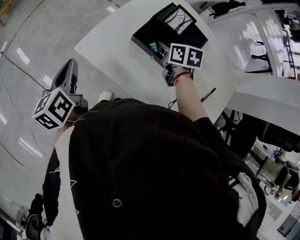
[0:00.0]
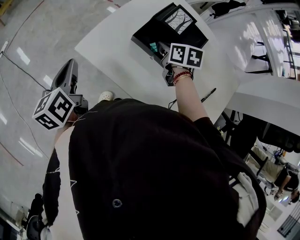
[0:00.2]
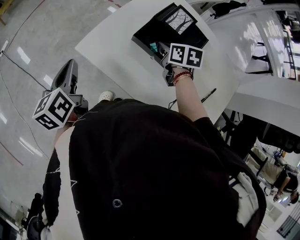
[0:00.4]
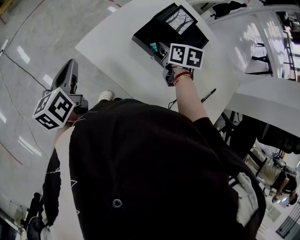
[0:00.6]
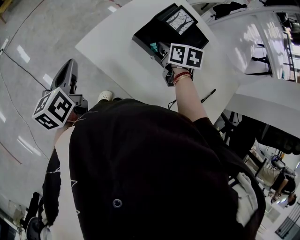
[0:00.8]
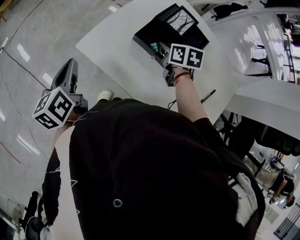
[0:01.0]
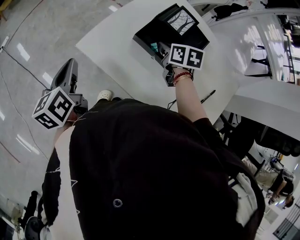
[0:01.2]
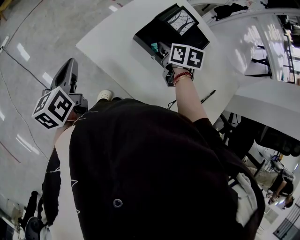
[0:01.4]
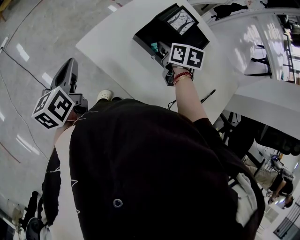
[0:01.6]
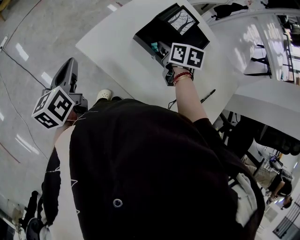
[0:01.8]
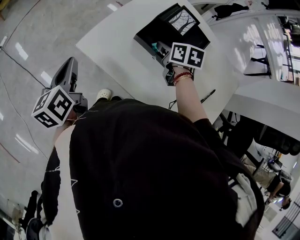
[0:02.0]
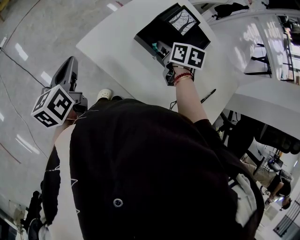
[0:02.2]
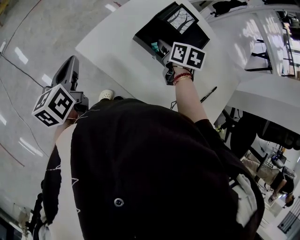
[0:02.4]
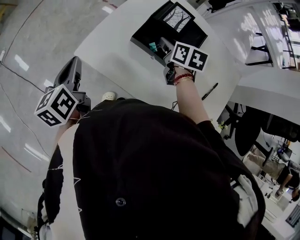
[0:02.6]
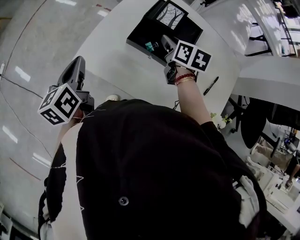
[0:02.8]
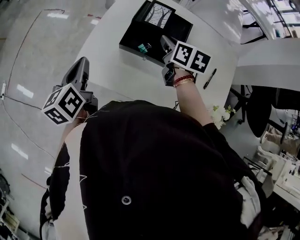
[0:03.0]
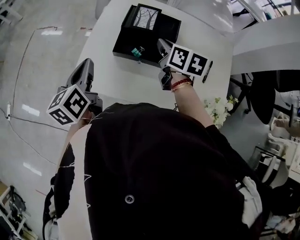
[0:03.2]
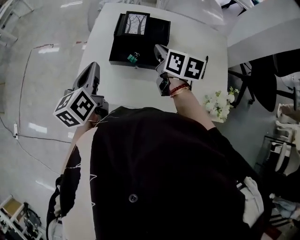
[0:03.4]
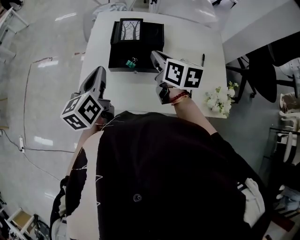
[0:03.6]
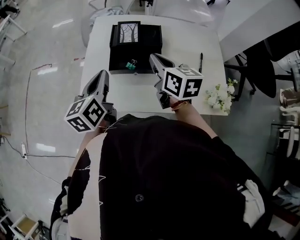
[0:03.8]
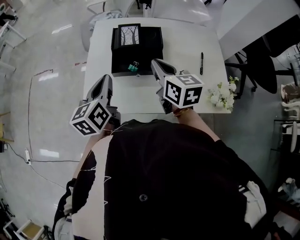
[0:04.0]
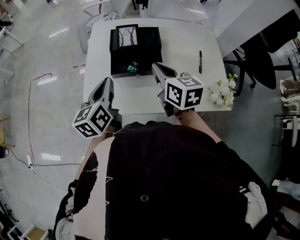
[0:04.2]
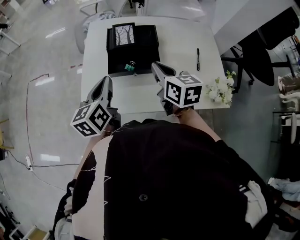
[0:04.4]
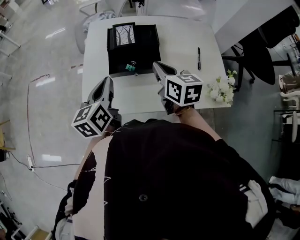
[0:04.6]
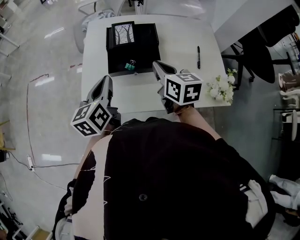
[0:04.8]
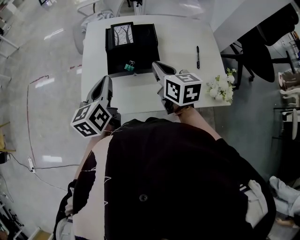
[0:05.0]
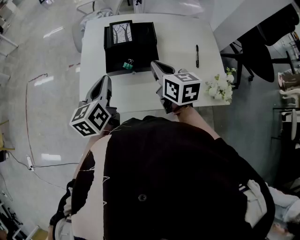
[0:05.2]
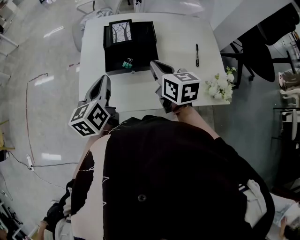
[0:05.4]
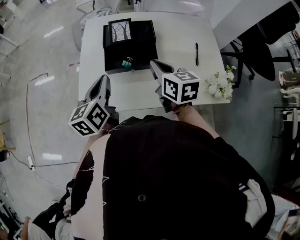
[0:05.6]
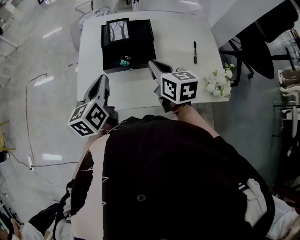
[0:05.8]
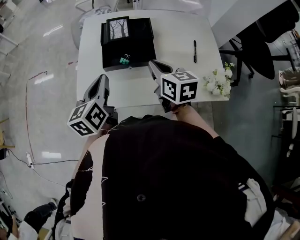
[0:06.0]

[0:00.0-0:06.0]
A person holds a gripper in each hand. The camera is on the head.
0:00.0 to 0:01.6: Both grippers stay put.
0:01.6 to 0:03.0: The right gripper moves upward and to the right, about 10 cm, turns by about 30 degrees, and opens, then closes again. The left gripper moves to the right and forward, about 10 cm, and swivels some 20 degrees.
0:03.0 to 0:04.4: The right gripper shifts approximately 10 cm backward and upward, and closes up. Meanwhile the left gripper shifts about 10 cm to the right, and swivels some 30 degrees.
0:04.4 to 0:06.0: The grippers stay close to where they were, moving slightly.

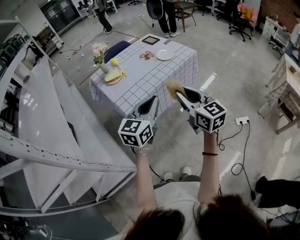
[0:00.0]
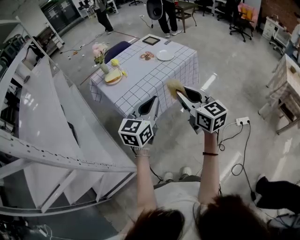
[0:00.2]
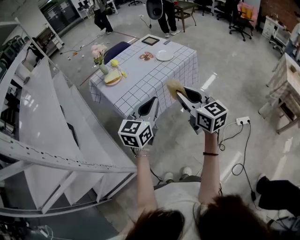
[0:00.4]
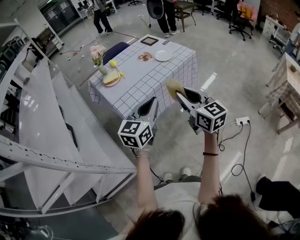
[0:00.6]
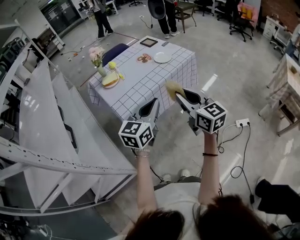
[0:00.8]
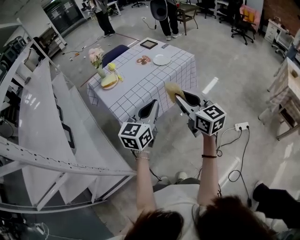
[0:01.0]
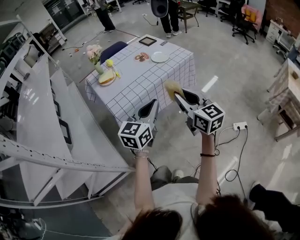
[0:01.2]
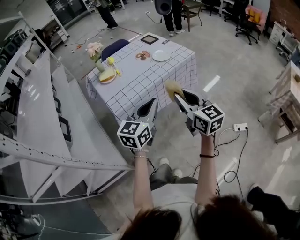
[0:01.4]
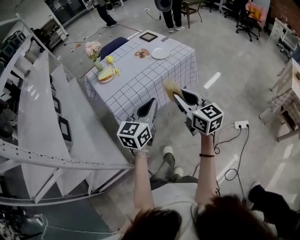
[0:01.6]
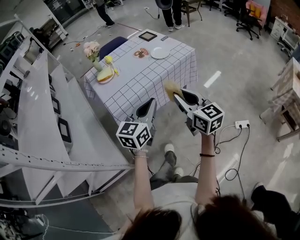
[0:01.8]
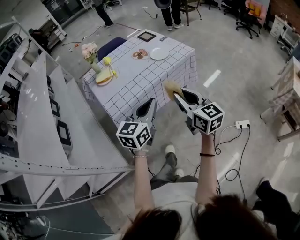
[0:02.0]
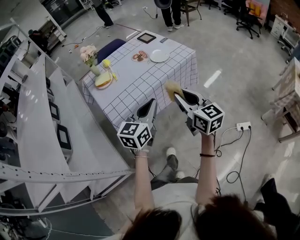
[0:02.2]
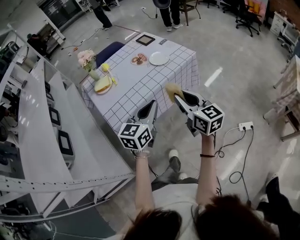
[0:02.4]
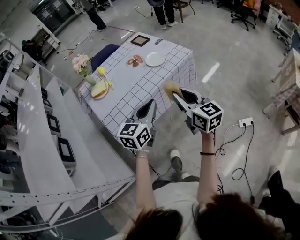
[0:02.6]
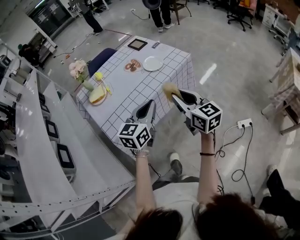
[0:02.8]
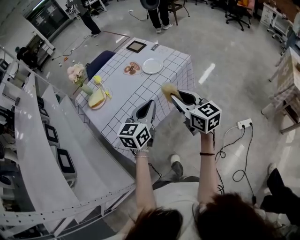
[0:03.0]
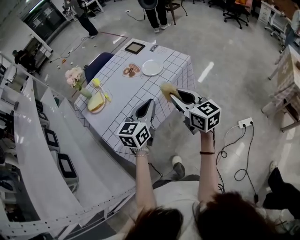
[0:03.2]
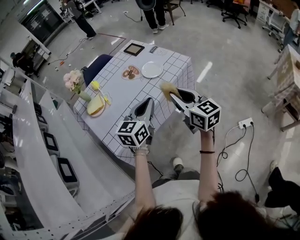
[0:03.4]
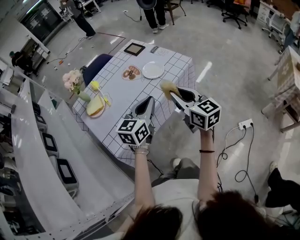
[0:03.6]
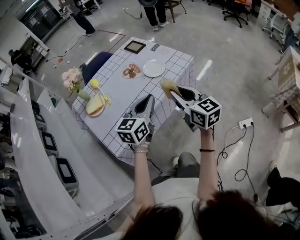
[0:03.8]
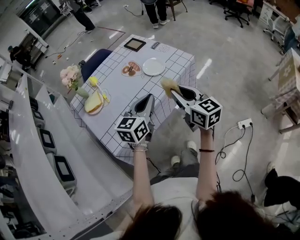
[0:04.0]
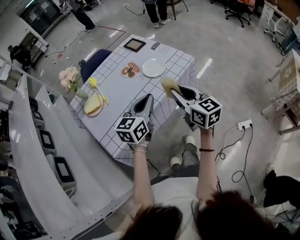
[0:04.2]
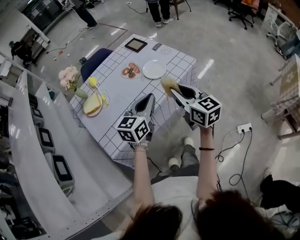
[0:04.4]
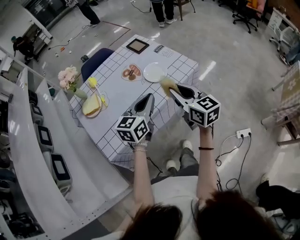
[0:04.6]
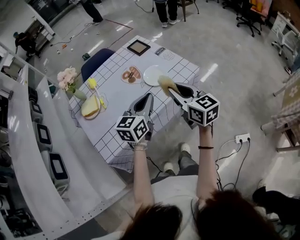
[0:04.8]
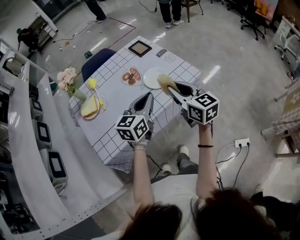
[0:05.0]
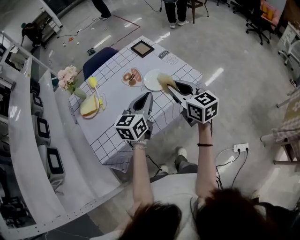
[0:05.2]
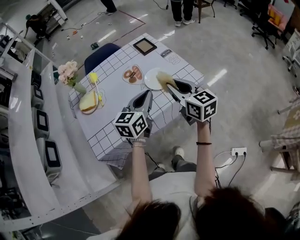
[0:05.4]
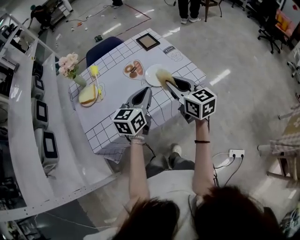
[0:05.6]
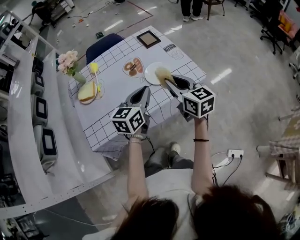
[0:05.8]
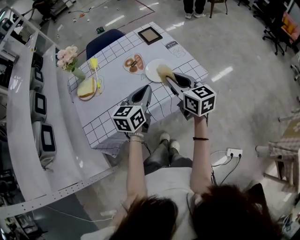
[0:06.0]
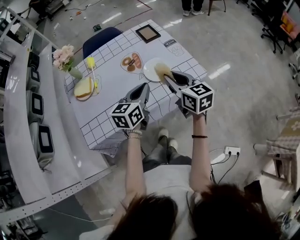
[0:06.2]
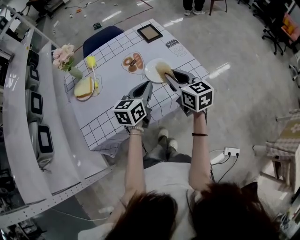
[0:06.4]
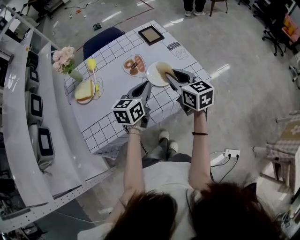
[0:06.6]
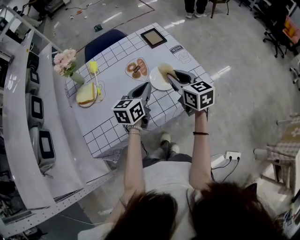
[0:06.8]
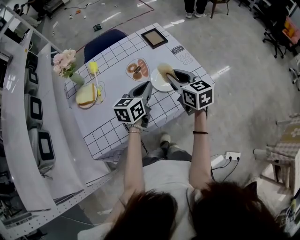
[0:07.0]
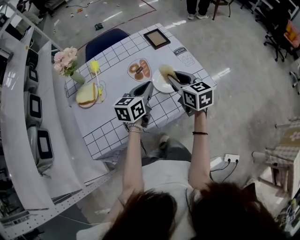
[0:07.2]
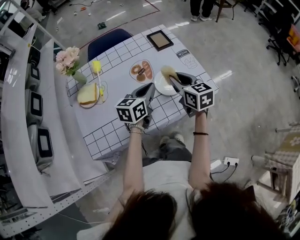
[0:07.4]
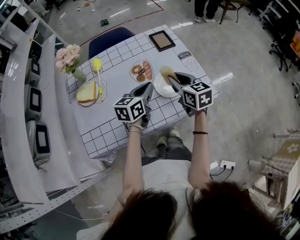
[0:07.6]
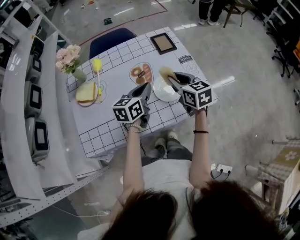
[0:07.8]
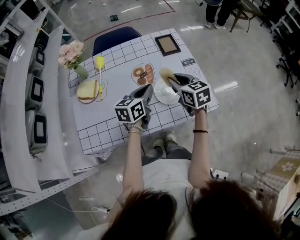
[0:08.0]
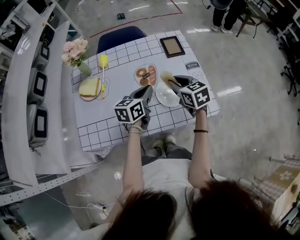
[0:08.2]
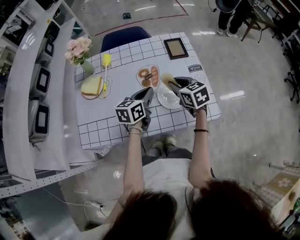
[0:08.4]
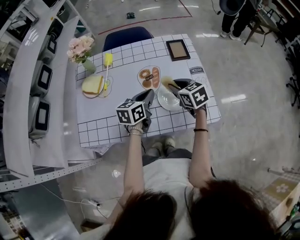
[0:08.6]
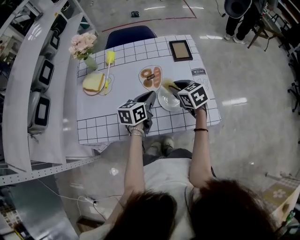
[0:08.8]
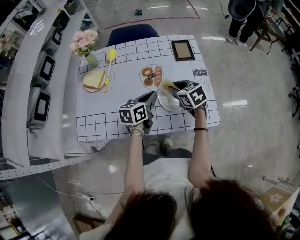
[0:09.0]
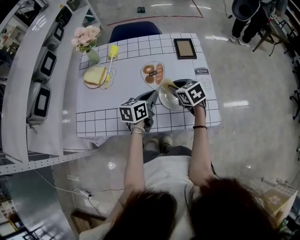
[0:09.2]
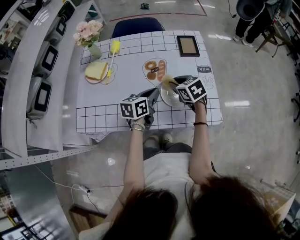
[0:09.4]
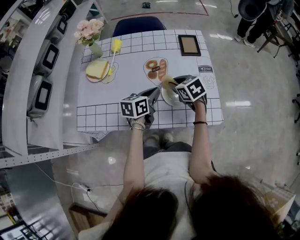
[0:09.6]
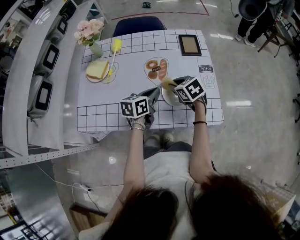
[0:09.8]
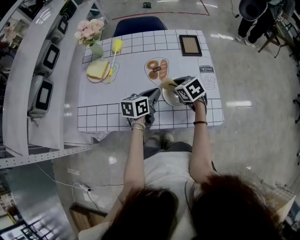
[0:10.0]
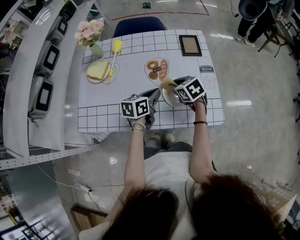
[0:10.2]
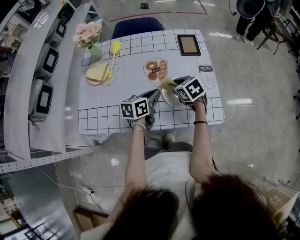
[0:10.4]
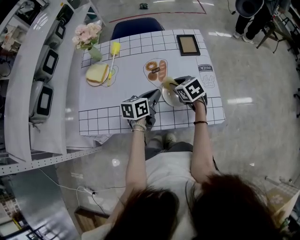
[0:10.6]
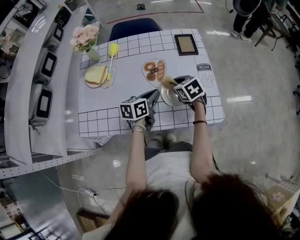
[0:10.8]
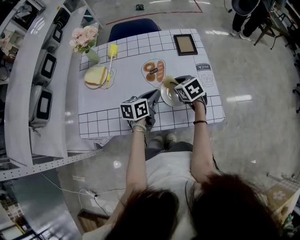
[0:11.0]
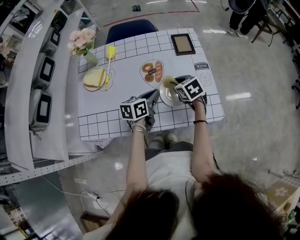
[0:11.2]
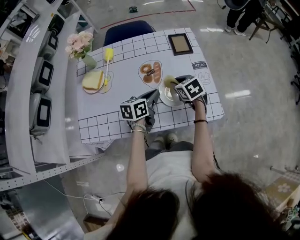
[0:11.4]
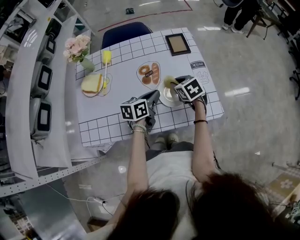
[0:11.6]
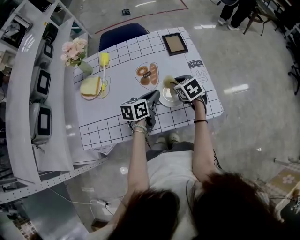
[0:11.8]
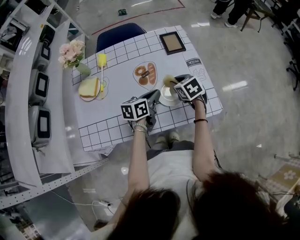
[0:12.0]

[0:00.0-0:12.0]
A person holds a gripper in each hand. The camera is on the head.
0:00.0 to 0:01.6: The grippers both shift to the right by about 10 cm.
0:01.6 to 0:03.0: Both grippers move forward, roughly 15 cm.
0:03.0 to 0:04.4: Both grippers move forward, some 10 cm.
0:04.4 to 0:06.0: Both grippers travel together forward, roughly 10 cm.
0:06.0 to 0:07.6: Both grippers move forward, roughly 15 cm.
0:07.6 to 0:09.0: The right gripper heads downward and forward, covering some 10 cm, and swivels roughly 30 degrees. The left gripper shifts approximately 5 cm downward.
0:09.0 to 0:10.4: The grippers make only small movements.
0:10.4 to 0:12.0: The right gripper heads to the right, covering some 5 cm.

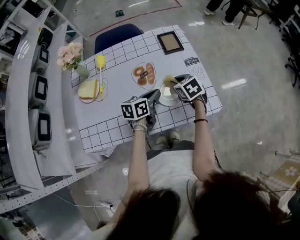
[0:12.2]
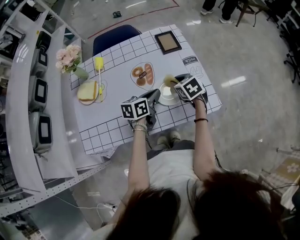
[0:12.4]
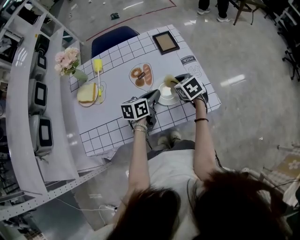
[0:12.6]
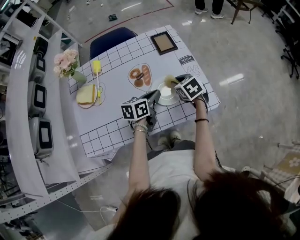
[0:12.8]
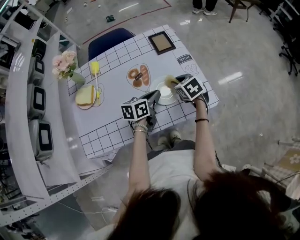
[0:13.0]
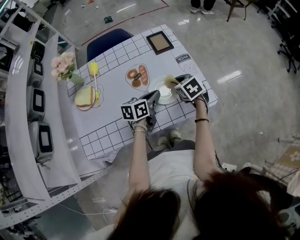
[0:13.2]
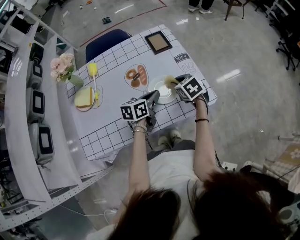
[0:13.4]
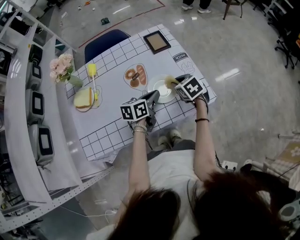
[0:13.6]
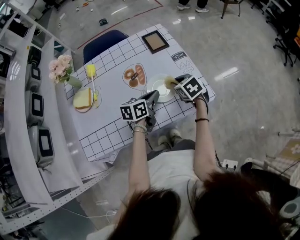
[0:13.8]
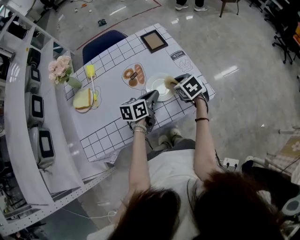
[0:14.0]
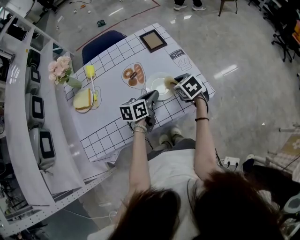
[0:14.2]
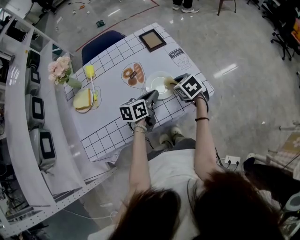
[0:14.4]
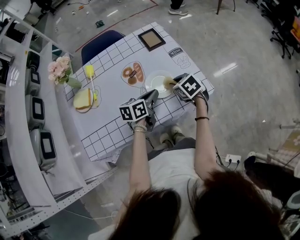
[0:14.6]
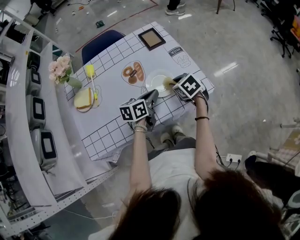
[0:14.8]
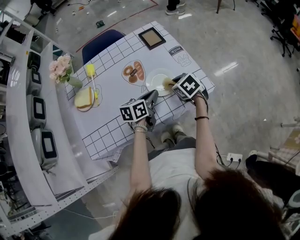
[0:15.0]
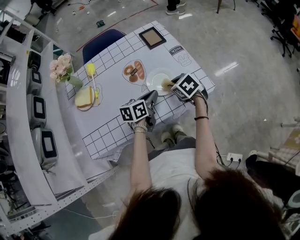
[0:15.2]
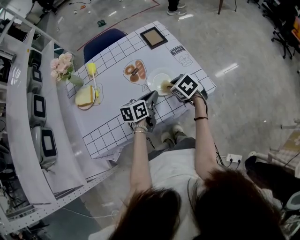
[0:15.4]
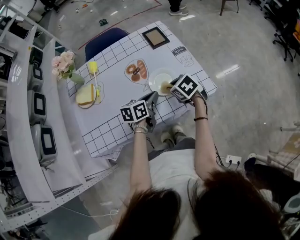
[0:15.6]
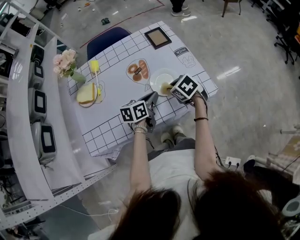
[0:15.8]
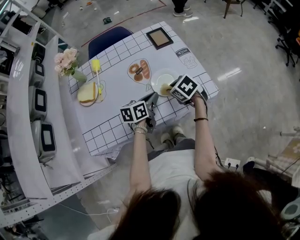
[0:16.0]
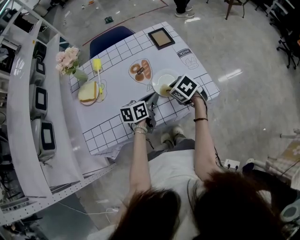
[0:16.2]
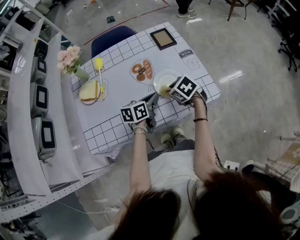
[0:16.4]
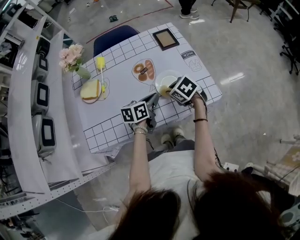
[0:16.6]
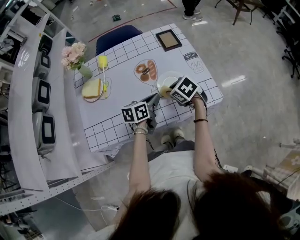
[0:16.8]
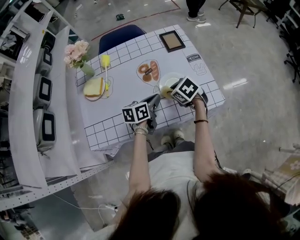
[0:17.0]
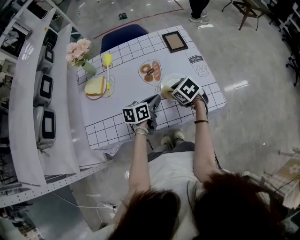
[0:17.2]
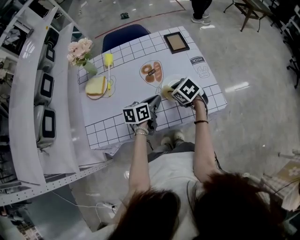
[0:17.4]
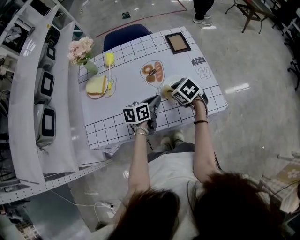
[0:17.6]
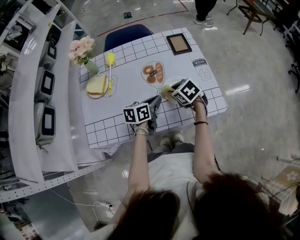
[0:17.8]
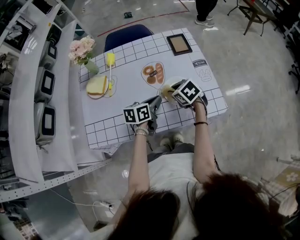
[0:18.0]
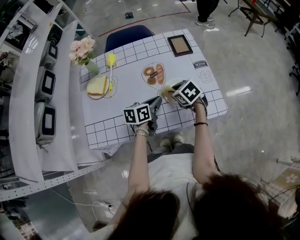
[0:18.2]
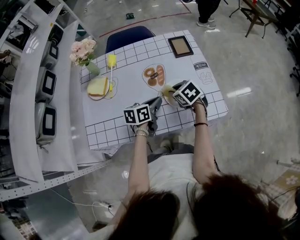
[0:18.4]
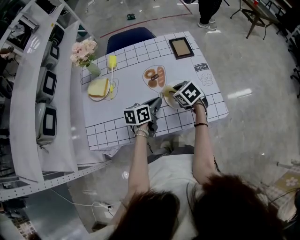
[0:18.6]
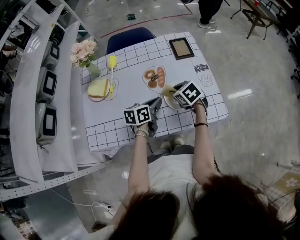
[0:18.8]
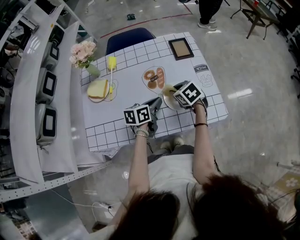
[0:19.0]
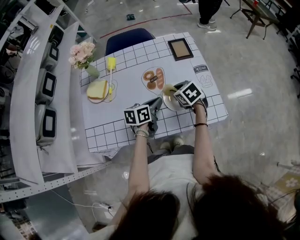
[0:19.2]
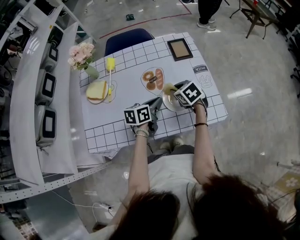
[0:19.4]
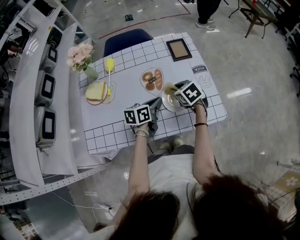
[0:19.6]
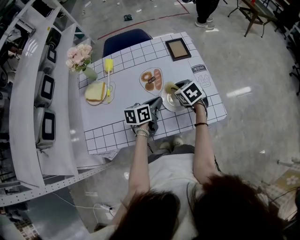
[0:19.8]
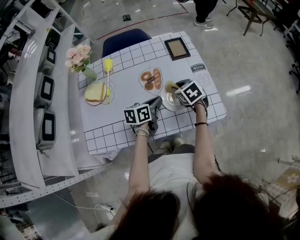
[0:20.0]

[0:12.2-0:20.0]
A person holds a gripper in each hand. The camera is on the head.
0:12.2 to 0:13.8: The right gripper moves some 5 cm.
0:13.8 to 0:15.4: The right gripper goes roughly 5 cm backward.
0:15.4 to 0:16.8: The right gripper moves to the left, some 5 cm.
0:16.8 to 0:18.4: There are only small adjustments of the grippers.
0:18.4 to 0:20.0: The right gripper moves some 5 cm.
